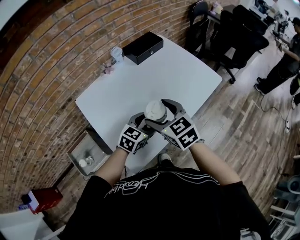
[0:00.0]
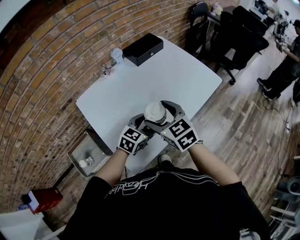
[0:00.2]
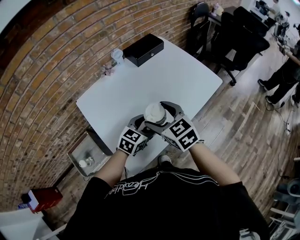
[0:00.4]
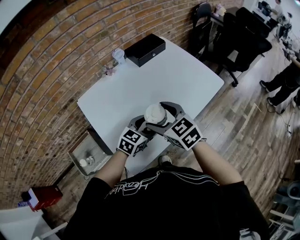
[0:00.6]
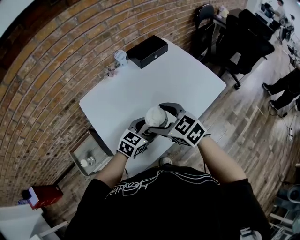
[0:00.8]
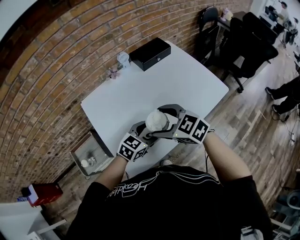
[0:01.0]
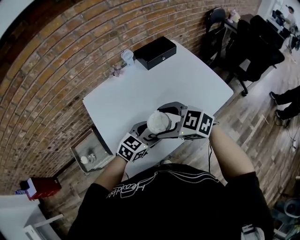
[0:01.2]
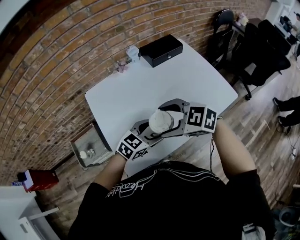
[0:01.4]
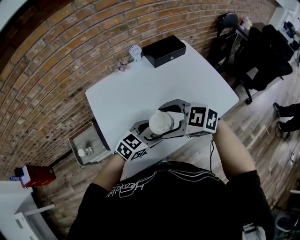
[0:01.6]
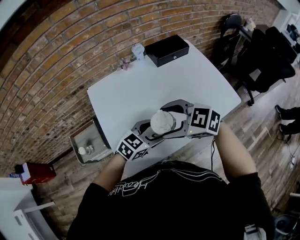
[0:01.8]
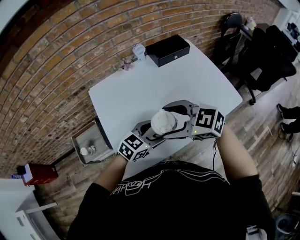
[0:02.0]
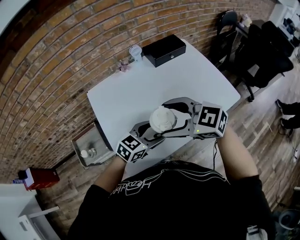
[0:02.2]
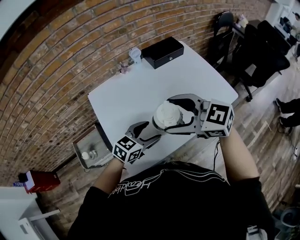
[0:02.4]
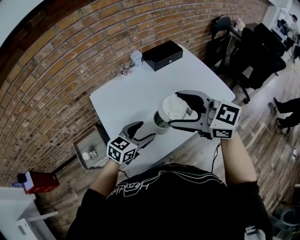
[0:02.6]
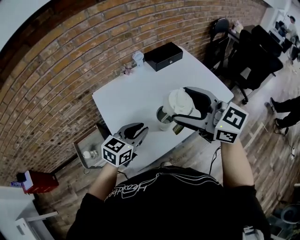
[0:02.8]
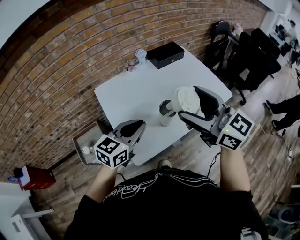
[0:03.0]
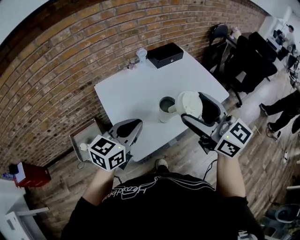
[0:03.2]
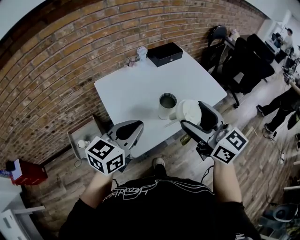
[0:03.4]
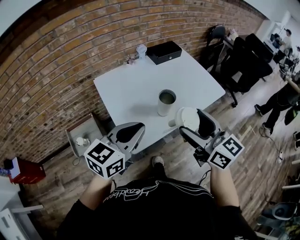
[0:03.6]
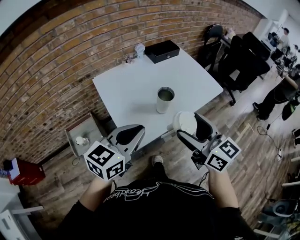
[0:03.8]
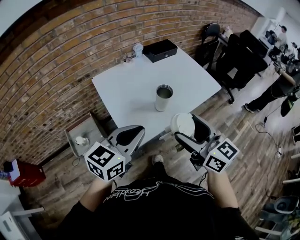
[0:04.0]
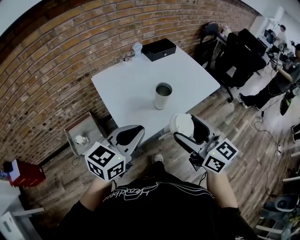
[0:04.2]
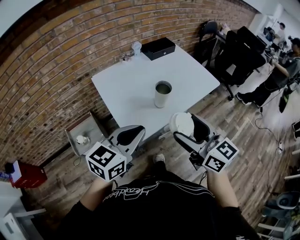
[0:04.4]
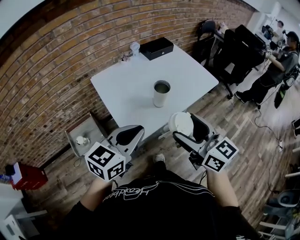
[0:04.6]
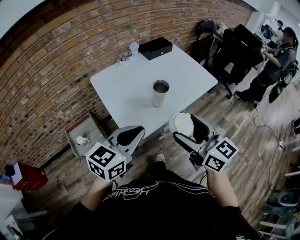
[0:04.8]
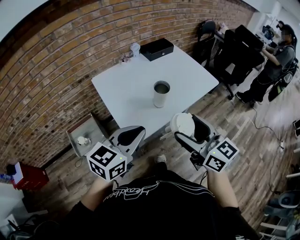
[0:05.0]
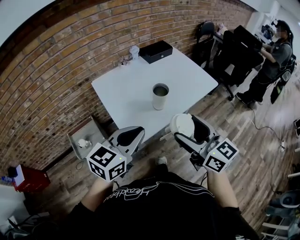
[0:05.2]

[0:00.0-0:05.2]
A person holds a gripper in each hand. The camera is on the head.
0.0 to 1.8 s: The right gripper changes its angle by roughly 50 degrees.
1.8 to 3.4 s: The two grippers go roughly 20 cm upward. The right gripper tilts its fingers some 30 degrees upward; the left gripper changes its angle by some 20 degrees, and closes up.
3.4 to 5.2 s: Both grippers travel together backward, approximately 10 cm.

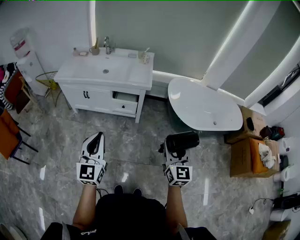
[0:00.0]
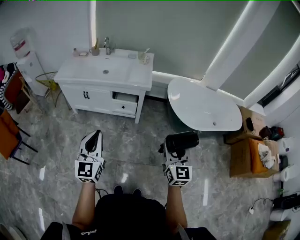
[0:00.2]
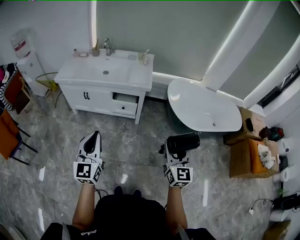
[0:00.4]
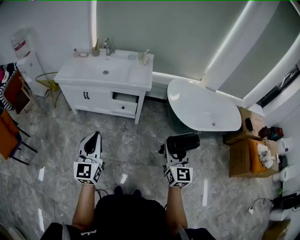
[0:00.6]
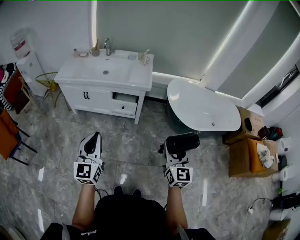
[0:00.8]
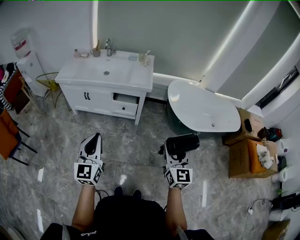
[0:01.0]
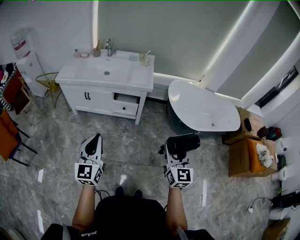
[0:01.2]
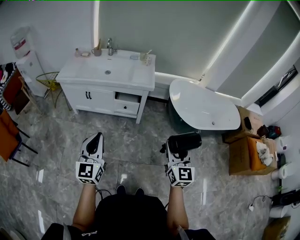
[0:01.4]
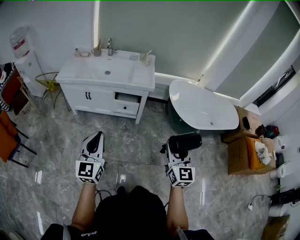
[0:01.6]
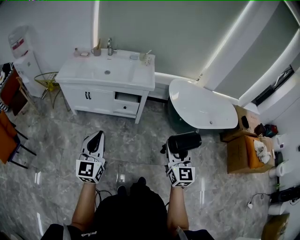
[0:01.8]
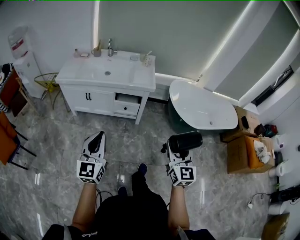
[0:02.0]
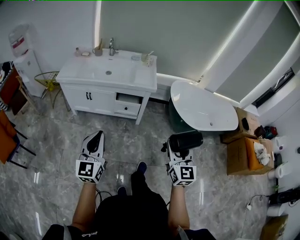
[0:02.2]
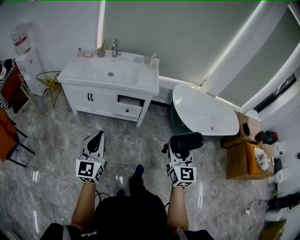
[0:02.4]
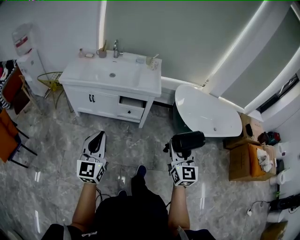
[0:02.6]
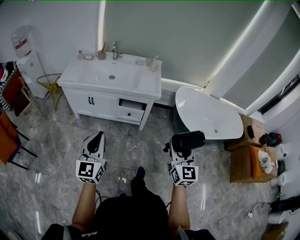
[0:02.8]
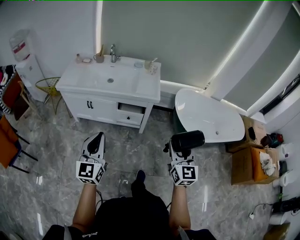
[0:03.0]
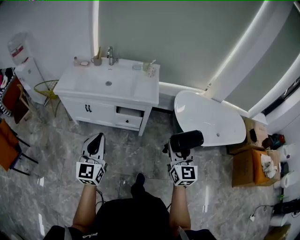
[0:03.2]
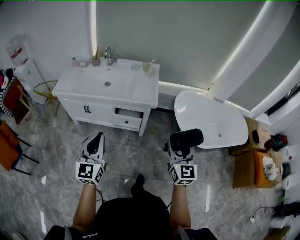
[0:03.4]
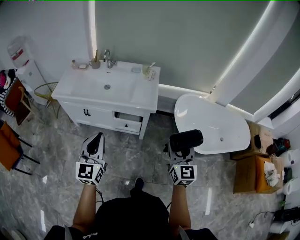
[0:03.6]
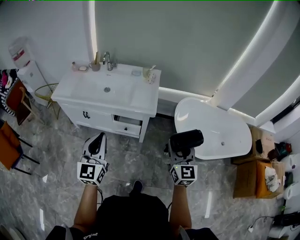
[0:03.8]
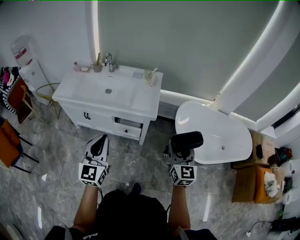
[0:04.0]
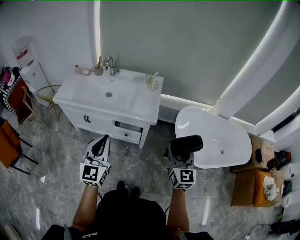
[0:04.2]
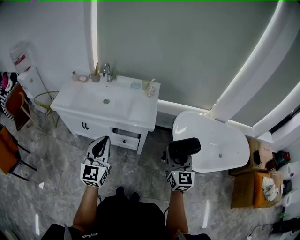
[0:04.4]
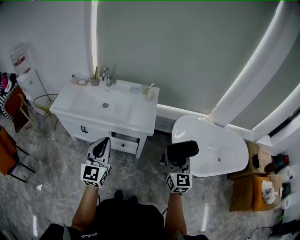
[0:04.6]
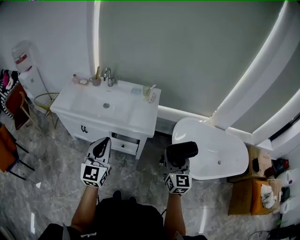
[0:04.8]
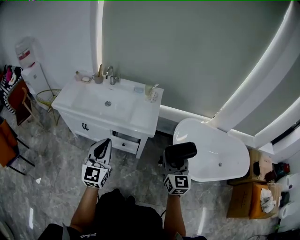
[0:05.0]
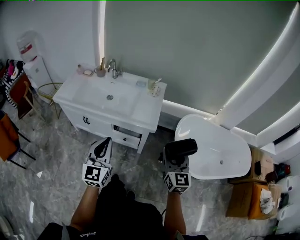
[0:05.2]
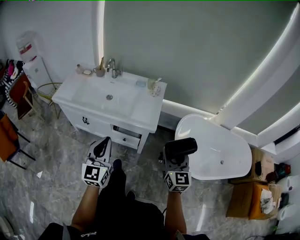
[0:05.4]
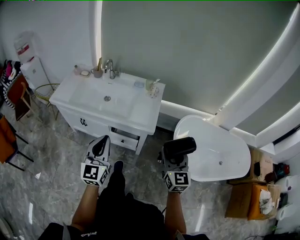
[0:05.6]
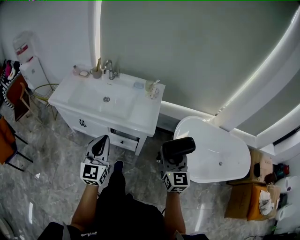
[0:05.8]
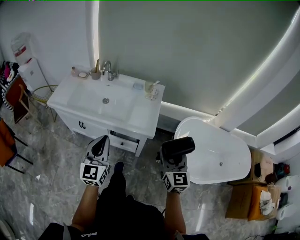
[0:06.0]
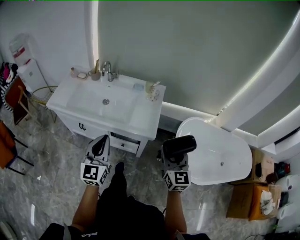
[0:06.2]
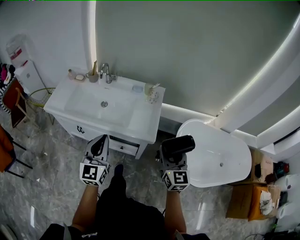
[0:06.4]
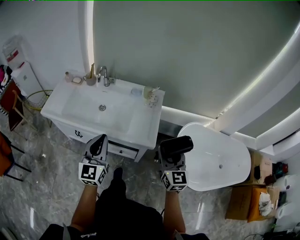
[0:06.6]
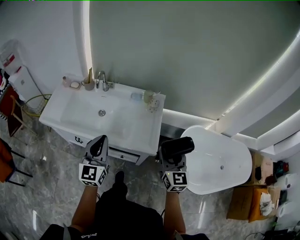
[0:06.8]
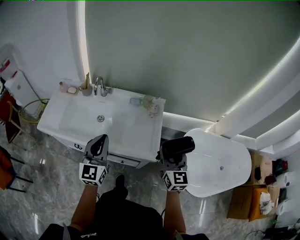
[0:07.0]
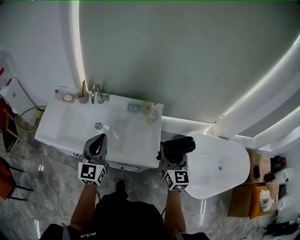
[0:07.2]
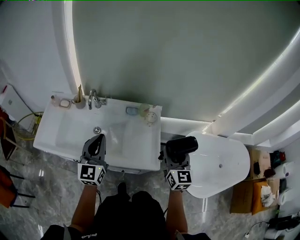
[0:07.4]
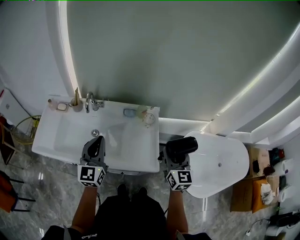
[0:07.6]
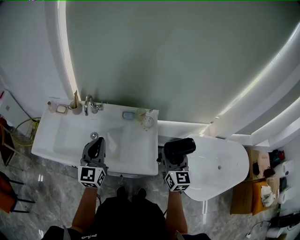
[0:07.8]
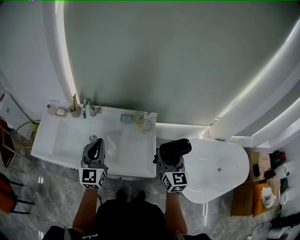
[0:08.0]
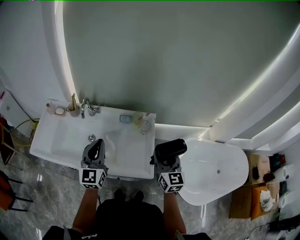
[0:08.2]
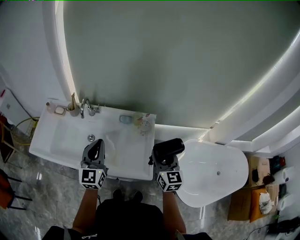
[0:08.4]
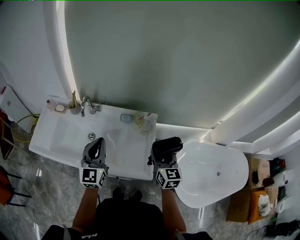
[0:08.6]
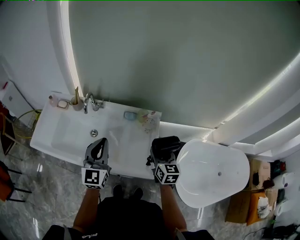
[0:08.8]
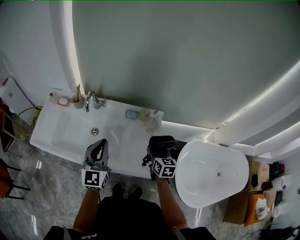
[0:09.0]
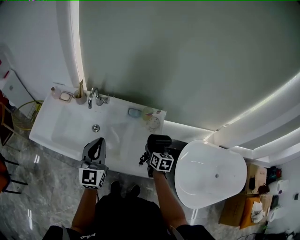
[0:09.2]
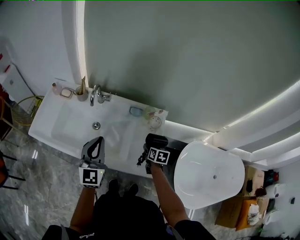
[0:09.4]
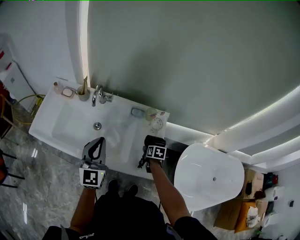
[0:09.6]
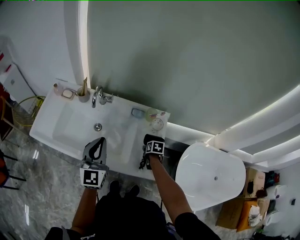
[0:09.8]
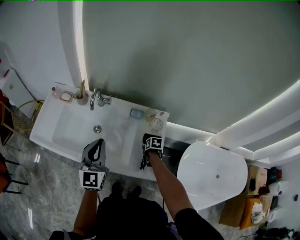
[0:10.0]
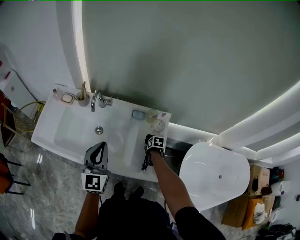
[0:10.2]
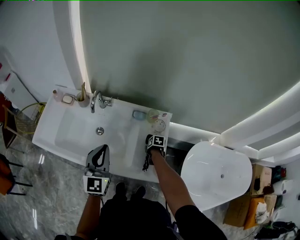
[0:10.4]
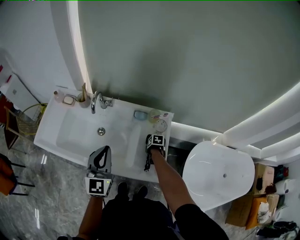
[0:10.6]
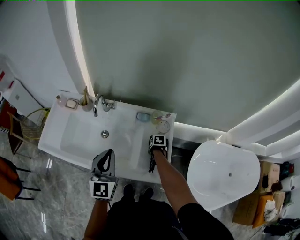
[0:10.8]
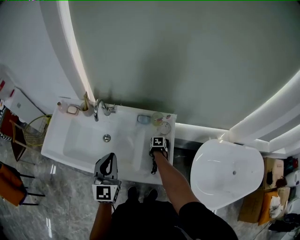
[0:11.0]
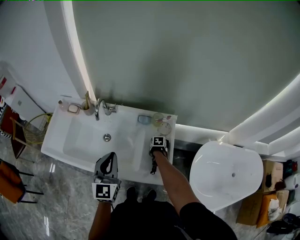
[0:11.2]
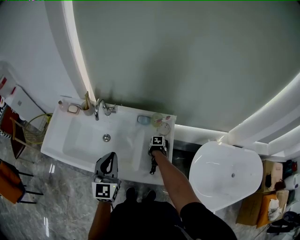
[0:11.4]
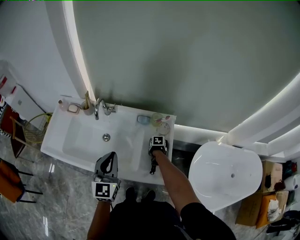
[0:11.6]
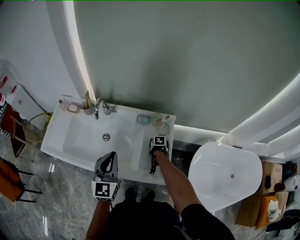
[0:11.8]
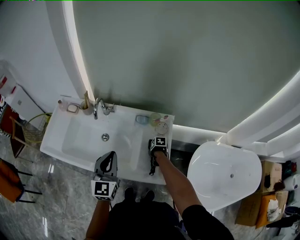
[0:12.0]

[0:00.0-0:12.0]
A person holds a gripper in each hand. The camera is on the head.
0.0 to 1.6 s: Both grippers travel together to the left, approximately 5 cm.
1.6 to 3.0 s: Both grippers travel together forward, roughly 10 cm.
3.0 to 4.4 s: The right gripper heads forward, covering about 20 cm; the left gripper moves forward and to the right, roughly 25 cm.
4.4 to 6.0 s: Both grippers move forward, about 10 cm.
6.0 to 7.6 s: Both grippers move forward, roughly 30 cm.
7.6 to 9.0 s: The right gripper goes about 15 cm downward and forward, and changes its angle by some 30 degrees.
9.0 to 10.4 s: The right gripper is displaced downward by approximately 25 cm, and tips its fingers downward by some 50 degrees.
10.4 to 12.0 s: The grippers make only small movements.

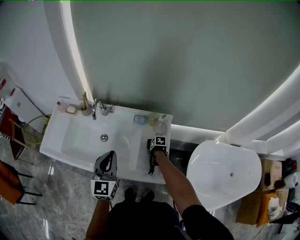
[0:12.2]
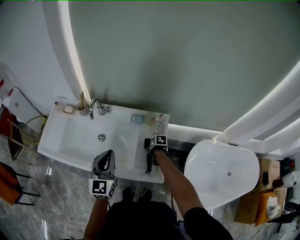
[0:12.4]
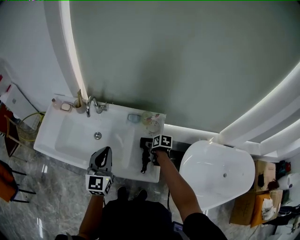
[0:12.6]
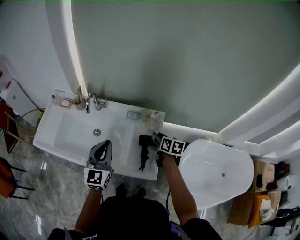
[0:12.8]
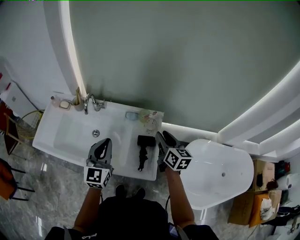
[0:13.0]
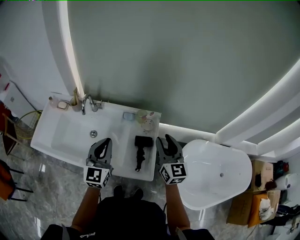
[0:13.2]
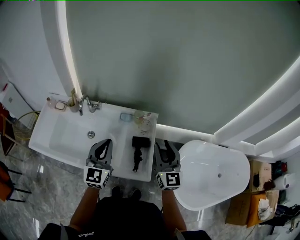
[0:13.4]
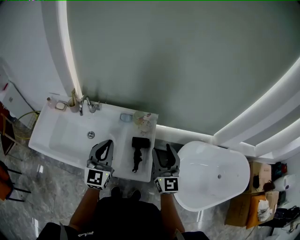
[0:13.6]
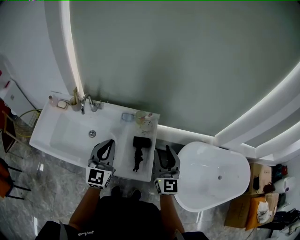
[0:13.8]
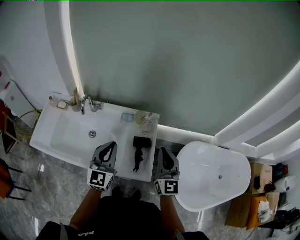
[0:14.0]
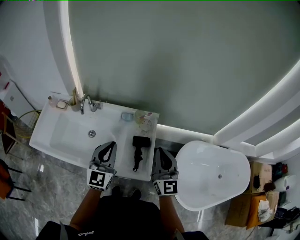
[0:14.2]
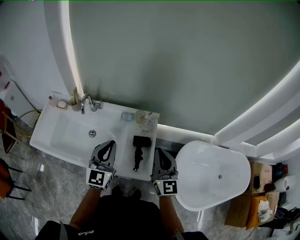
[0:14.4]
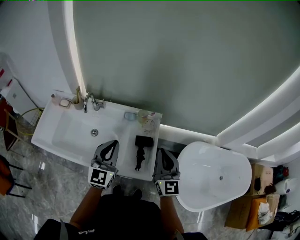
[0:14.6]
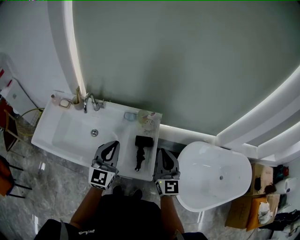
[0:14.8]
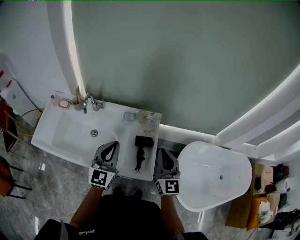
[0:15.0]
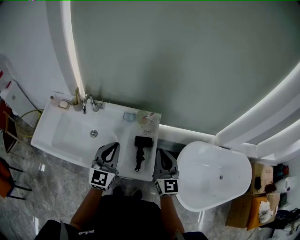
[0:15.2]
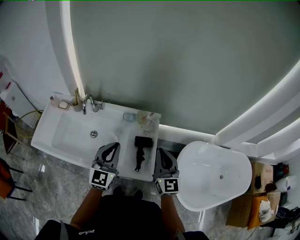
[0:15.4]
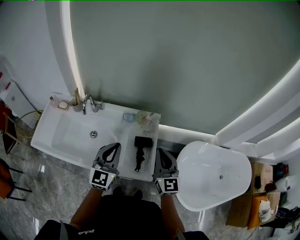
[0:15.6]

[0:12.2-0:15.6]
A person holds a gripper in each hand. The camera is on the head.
12.2 to 13.8 s: The left gripper shifts by roughly 10 cm; the right gripper is displaced upward by approximately 40 cm, and tilts its fingers about 80 degrees upward.
13.8 to 15.6 s: The right gripper closes up.

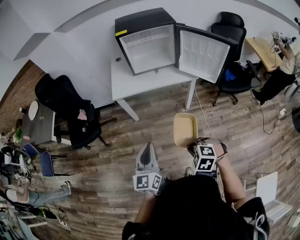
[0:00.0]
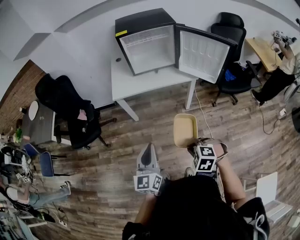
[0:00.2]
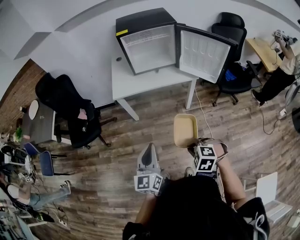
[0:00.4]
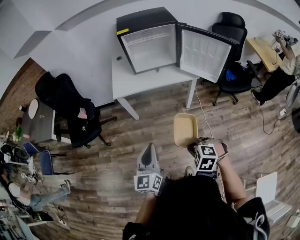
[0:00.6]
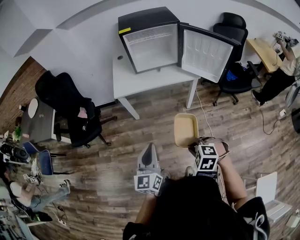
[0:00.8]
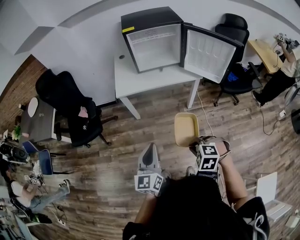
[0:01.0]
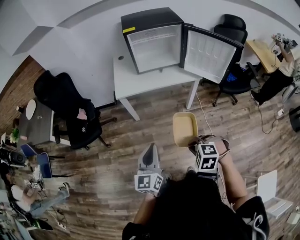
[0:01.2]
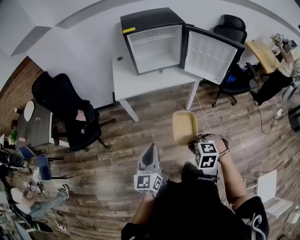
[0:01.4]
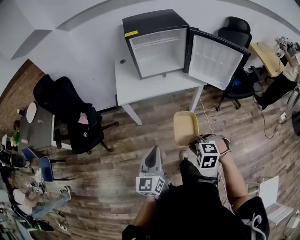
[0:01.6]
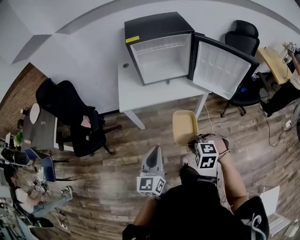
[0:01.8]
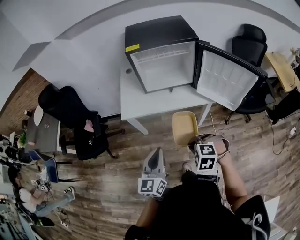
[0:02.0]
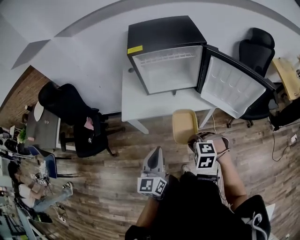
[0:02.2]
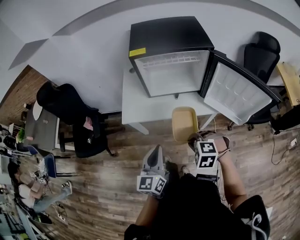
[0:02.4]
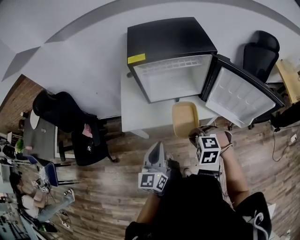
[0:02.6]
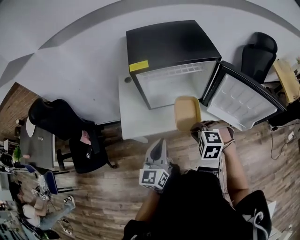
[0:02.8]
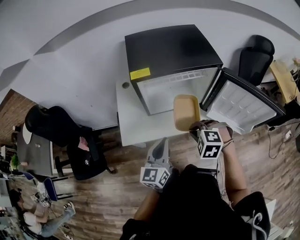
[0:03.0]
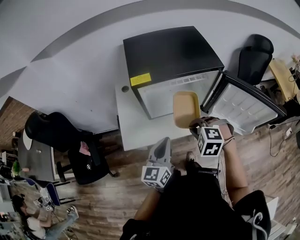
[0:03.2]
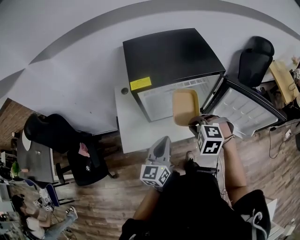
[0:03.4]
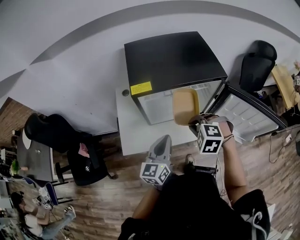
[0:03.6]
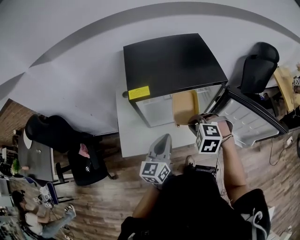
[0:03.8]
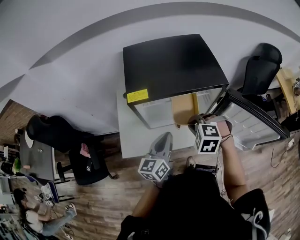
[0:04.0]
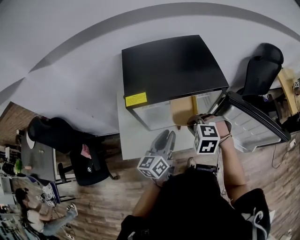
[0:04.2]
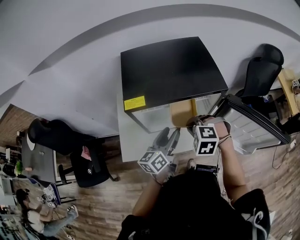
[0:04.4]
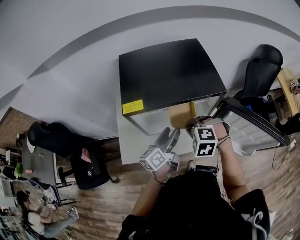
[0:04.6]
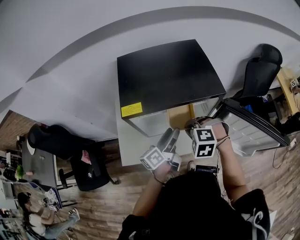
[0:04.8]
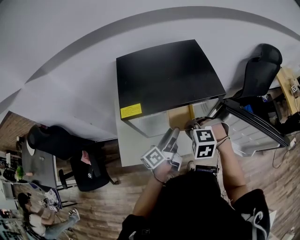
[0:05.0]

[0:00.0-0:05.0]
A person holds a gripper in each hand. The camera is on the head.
0.0 to 1.6 s: Both grippers move forward, about 5 cm.
1.6 to 3.4 s: Both grippers are carried forward, roughly 50 cm.
3.4 to 5.0 s: The right gripper moves forward, about 10 cm. The left gripper shifts roughly 15 cm forward and to the right, twists about 50 degrees counterclockwise, seen from behind, and opens.
